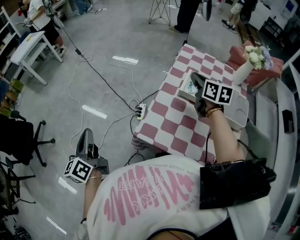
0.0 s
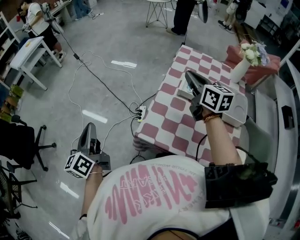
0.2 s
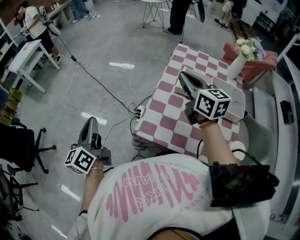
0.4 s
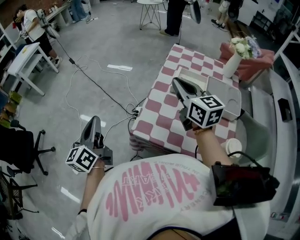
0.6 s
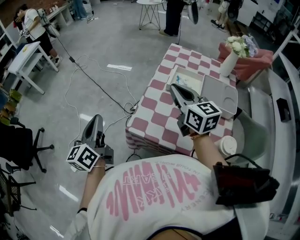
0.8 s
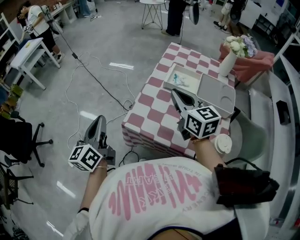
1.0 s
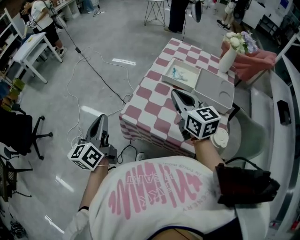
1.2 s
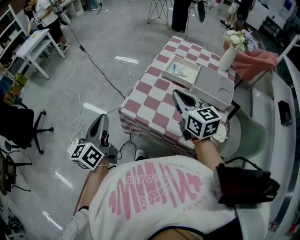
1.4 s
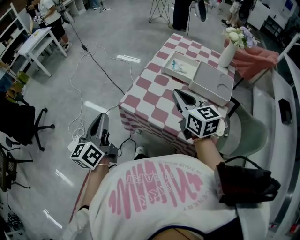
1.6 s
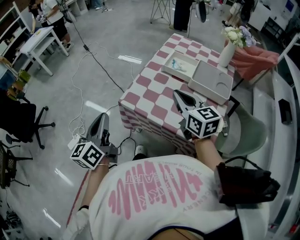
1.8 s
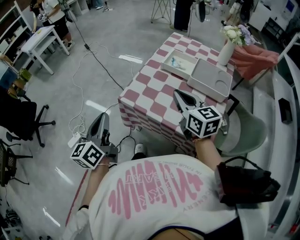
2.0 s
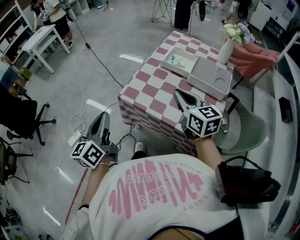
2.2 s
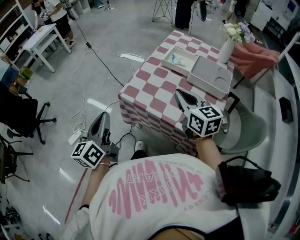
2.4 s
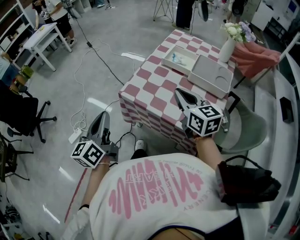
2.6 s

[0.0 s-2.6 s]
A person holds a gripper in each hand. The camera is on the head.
0.0 to 1.2 s: The right gripper shifts some 20 cm backward, while the left gripper moves to the right and backward, some 15 cm.
1.2 to 2.6 s: The grippers both shift backward by roughly 15 cm.

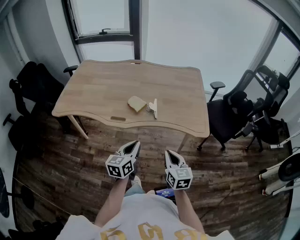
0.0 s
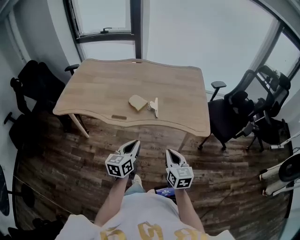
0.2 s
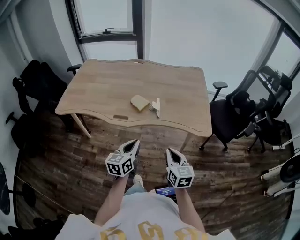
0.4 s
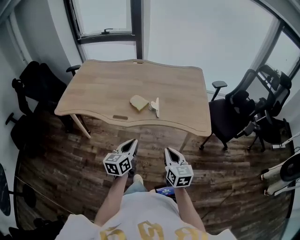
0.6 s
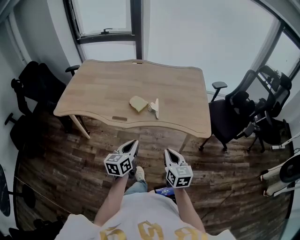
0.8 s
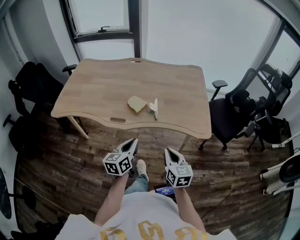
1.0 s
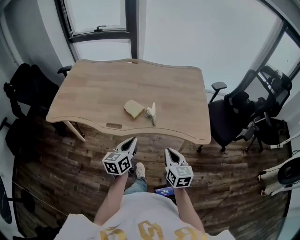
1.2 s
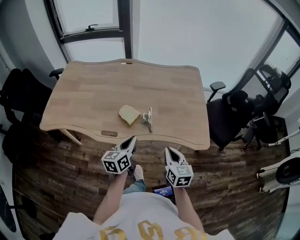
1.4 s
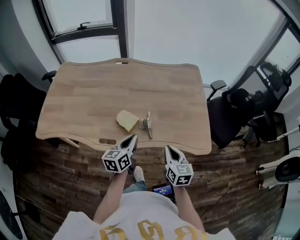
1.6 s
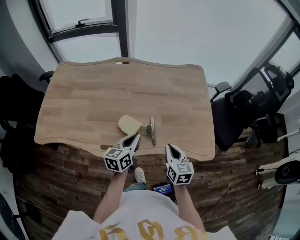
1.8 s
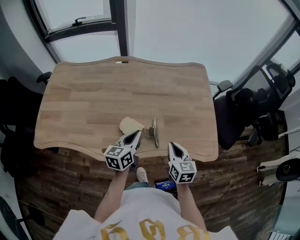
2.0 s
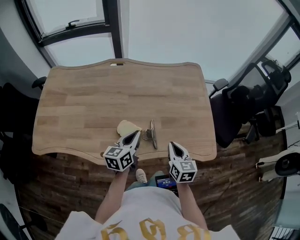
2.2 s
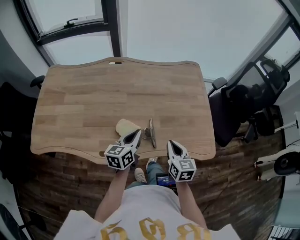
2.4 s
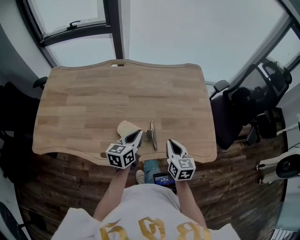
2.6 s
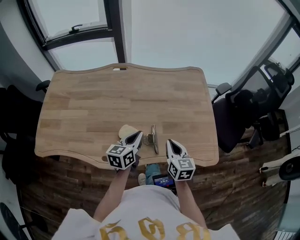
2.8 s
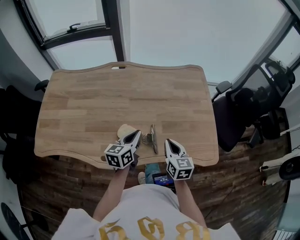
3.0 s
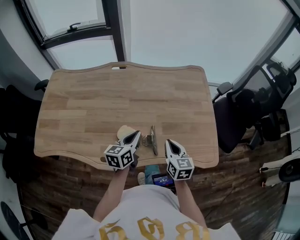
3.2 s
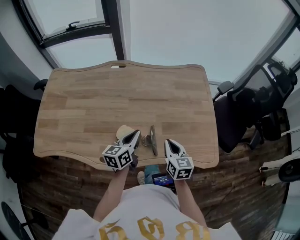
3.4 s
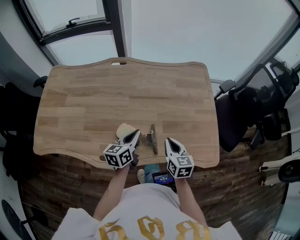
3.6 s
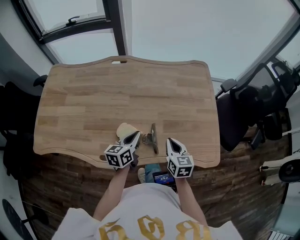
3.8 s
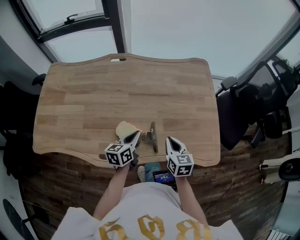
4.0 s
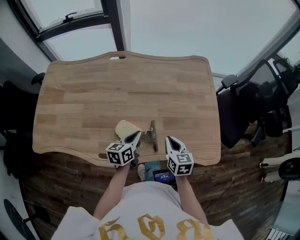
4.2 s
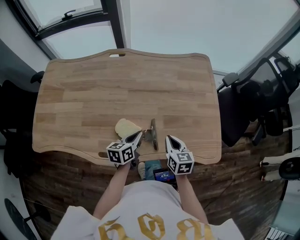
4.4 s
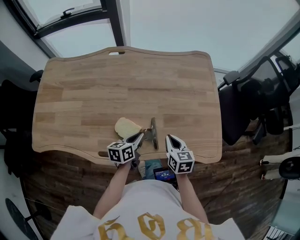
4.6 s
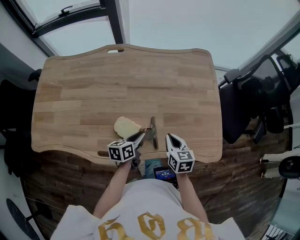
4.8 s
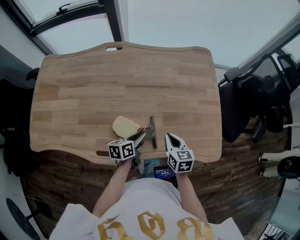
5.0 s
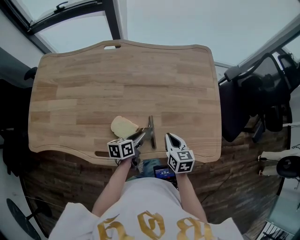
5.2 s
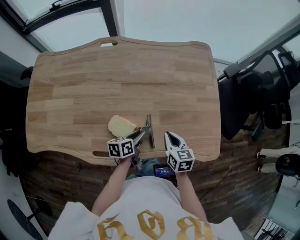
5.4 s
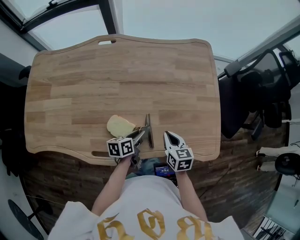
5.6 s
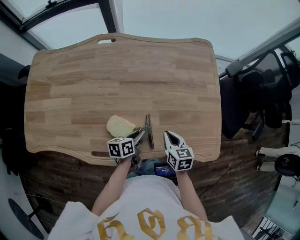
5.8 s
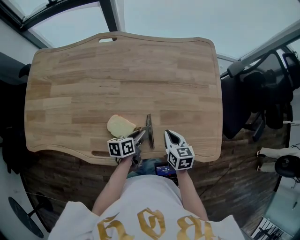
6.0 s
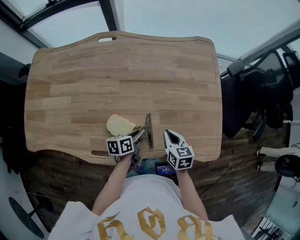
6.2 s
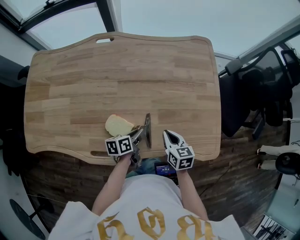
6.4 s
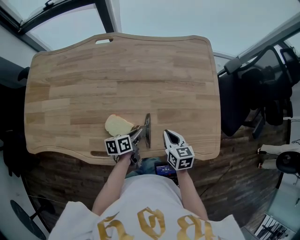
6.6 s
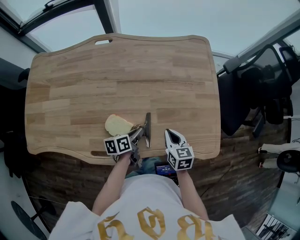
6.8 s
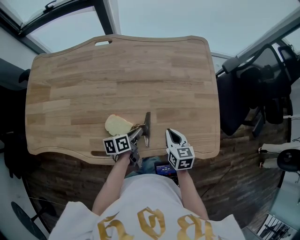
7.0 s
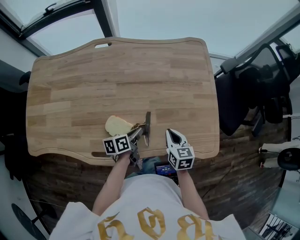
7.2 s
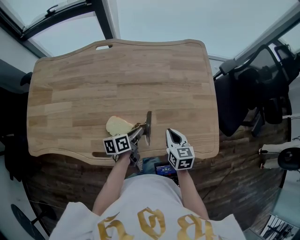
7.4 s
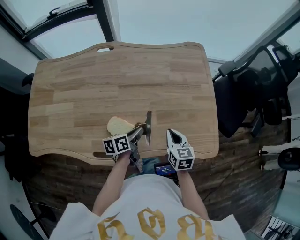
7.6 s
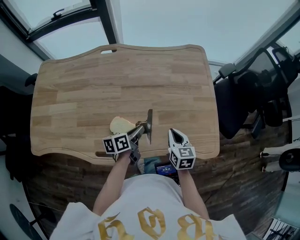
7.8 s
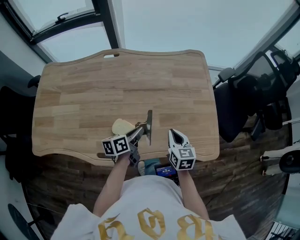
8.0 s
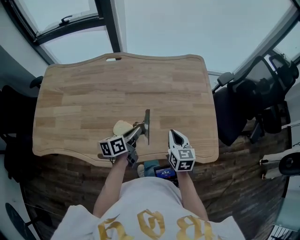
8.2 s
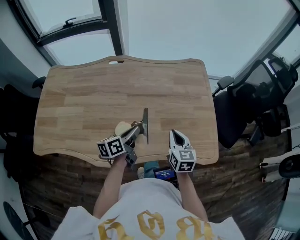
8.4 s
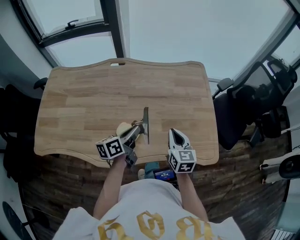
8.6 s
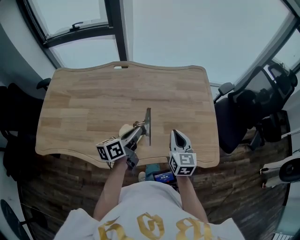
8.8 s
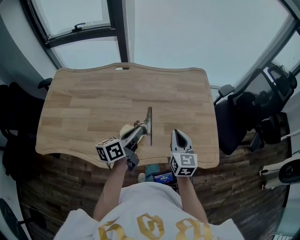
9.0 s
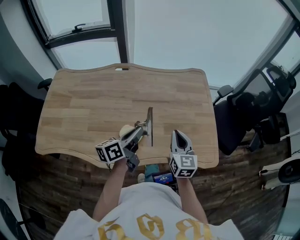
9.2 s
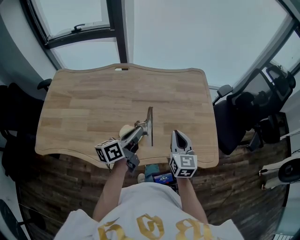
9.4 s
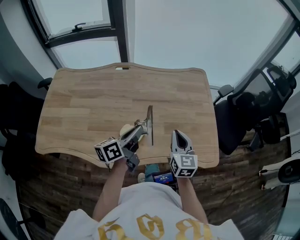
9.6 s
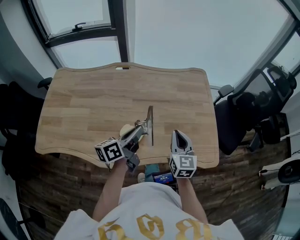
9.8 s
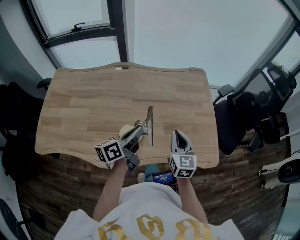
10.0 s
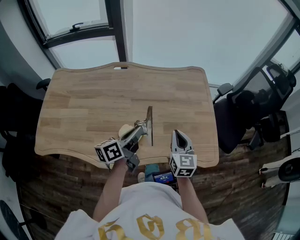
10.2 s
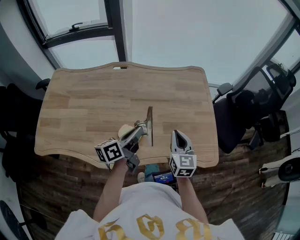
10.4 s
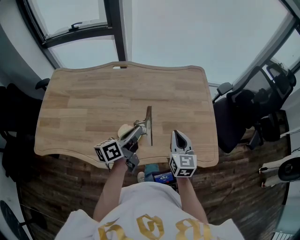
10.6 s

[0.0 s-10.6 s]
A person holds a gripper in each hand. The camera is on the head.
0.0 to 1.6 s: The two grippers go about 20 cm forward.
1.6 to 3.0 s: The grippers both shift forward by about 15 cm.
3.0 to 4.6 s: The left gripper heads downward, covering roughly 10 cm; the right gripper goes roughly 5 cm downward.
4.6 to 6.0 s: The right gripper shifts by roughly 5 cm. Meanwhile the left gripper goes roughly 5 cm downward.
6.0 to 7.6 s: The grippers stay close to where they were, moving slightly.
7.6 to 9.0 s: The two grippers go approximately 15 cm upward. The left gripper changes its angle by roughly 20 degrees; the right gripper turns by about 20 degrees.
9.0 to 10.6 s: There are only small adjustments of the grippers.

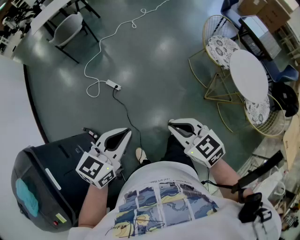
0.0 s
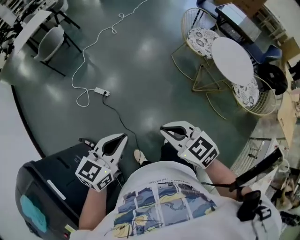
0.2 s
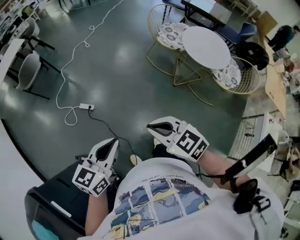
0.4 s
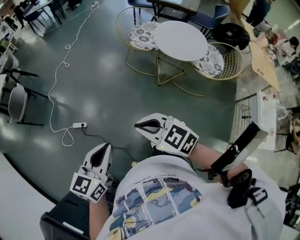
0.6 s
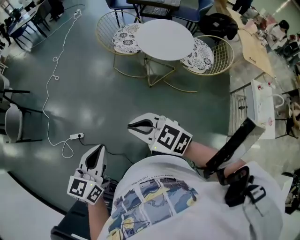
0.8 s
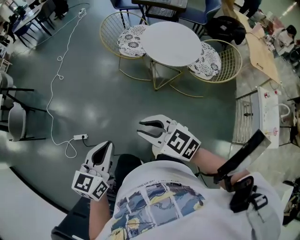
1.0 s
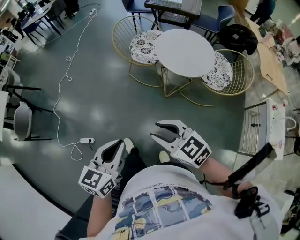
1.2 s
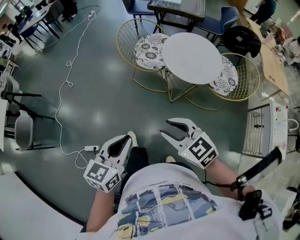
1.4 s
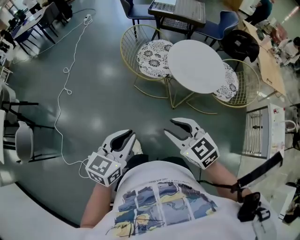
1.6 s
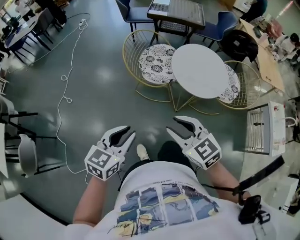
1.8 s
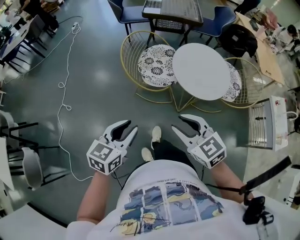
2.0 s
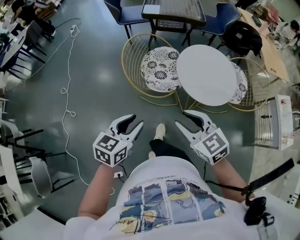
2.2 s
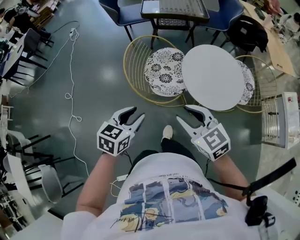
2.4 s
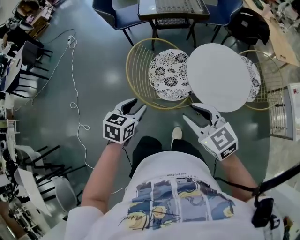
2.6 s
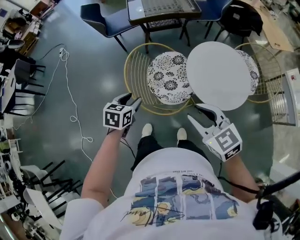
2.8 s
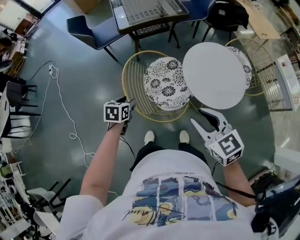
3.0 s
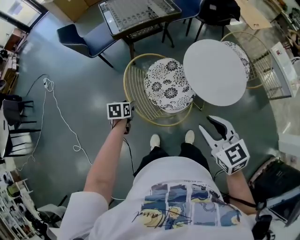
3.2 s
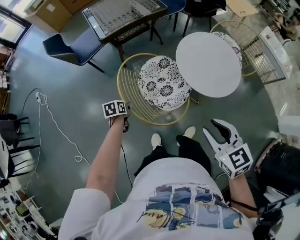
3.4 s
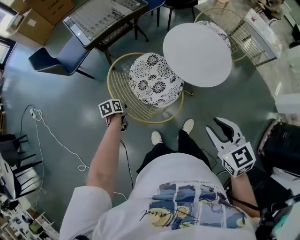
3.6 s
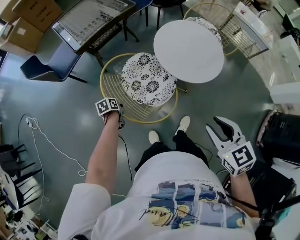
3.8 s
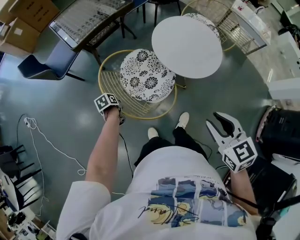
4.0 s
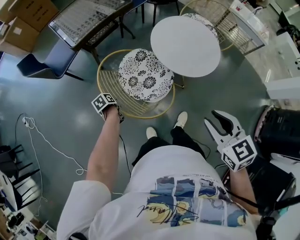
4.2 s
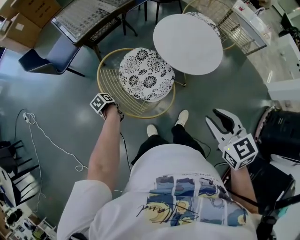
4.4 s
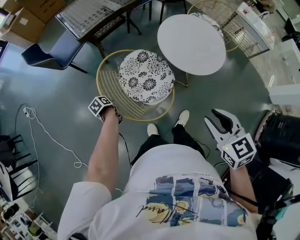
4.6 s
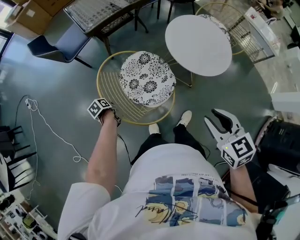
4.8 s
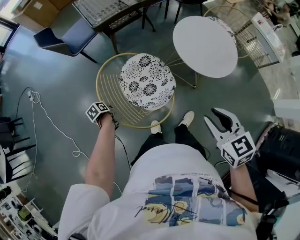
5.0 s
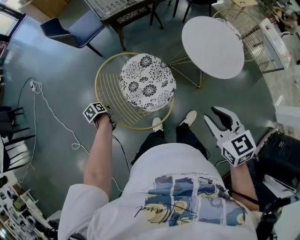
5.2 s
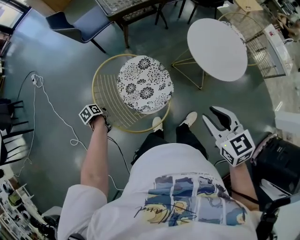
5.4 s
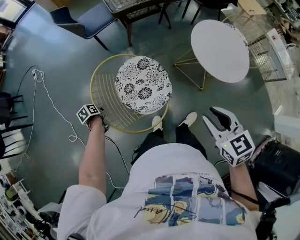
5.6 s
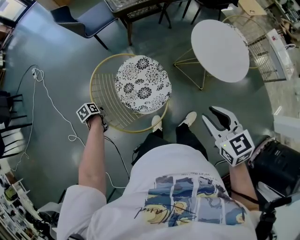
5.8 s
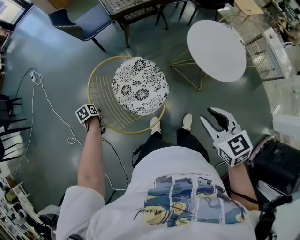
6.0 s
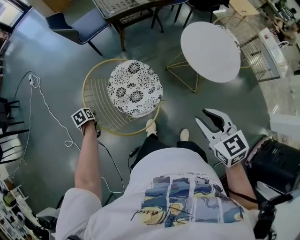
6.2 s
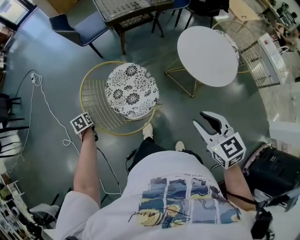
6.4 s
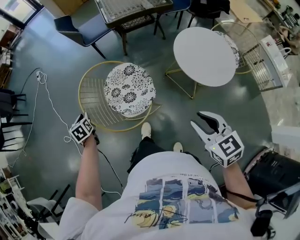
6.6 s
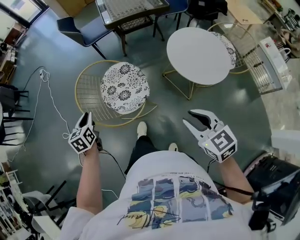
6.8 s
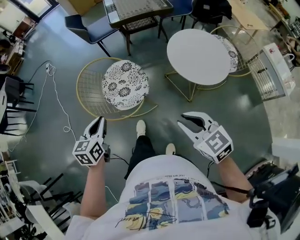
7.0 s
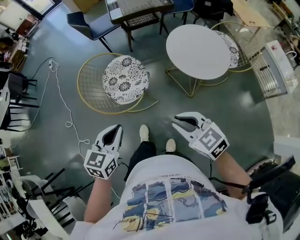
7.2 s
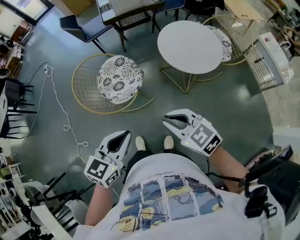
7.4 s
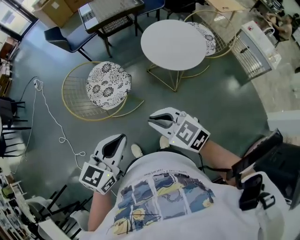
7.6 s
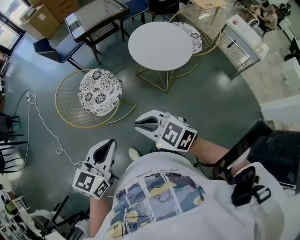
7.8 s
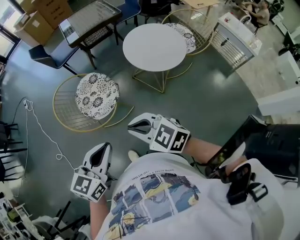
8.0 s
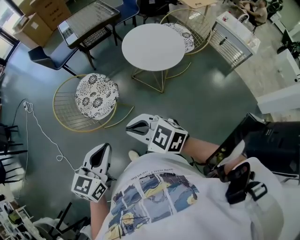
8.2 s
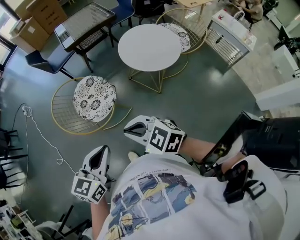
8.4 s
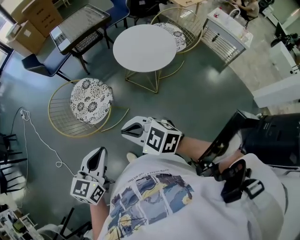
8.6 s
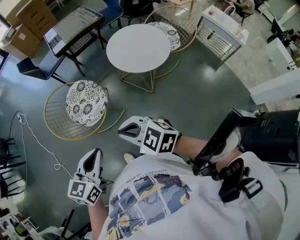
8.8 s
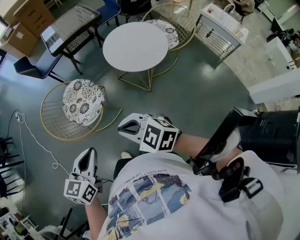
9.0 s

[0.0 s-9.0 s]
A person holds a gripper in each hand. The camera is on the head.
0.0 to 1.6 s: The left gripper ends up approximately 40 cm from where it was, and rotates about 40 degrees. Meanwhile the right gripper ends up approximately 35 cm from where it was, swivels about 40 degrees, and opens up.
1.6 to 3.0 s: The pair of grippers is taken roughly 50 cm. The left gripper tips its fingers downward by roughly 30 degrees, and opens its fingers. The right gripper turns by about 40 degrees.
3.0 to 4.4 s: The right gripper ends up roughly 10 cm from where it was, and swivels roughly 30 degrees. Meanwhile the left gripper shifts approximately 20 cm downward, turns by approximately 40 degrees, and closes its fingers.
4.4 to 6.0 s: The left gripper goes roughly 30 cm to the left and backward, while the right gripper moves to the left, some 10 cm.
6.0 to 7.6 s: The left gripper changes place by approximately 70 cm, and angles its fingers upward, by roughly 50 degrees. The right gripper changes place by approximately 20 cm, turns by roughly 30 degrees, and closes its fingers.

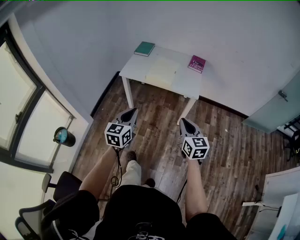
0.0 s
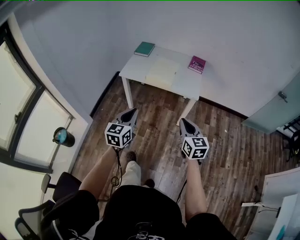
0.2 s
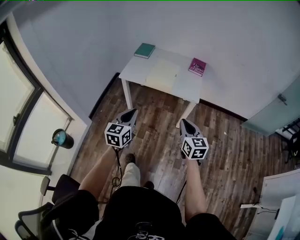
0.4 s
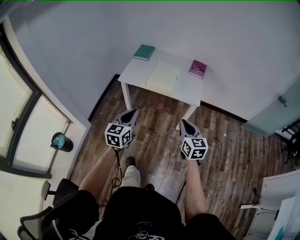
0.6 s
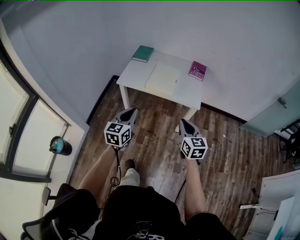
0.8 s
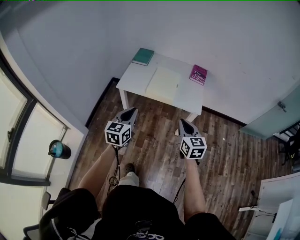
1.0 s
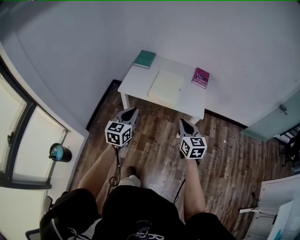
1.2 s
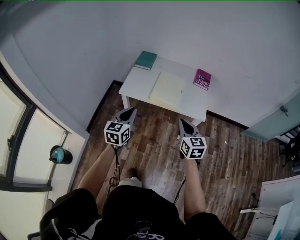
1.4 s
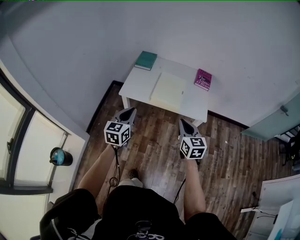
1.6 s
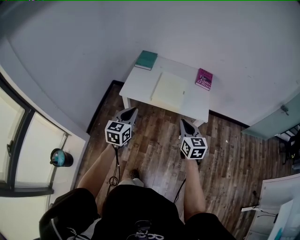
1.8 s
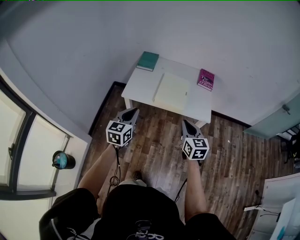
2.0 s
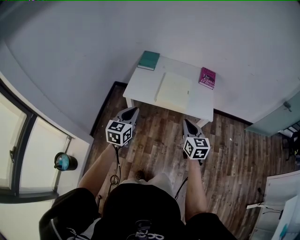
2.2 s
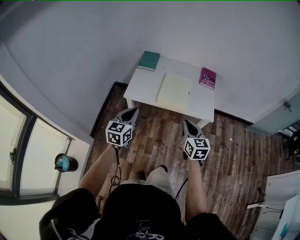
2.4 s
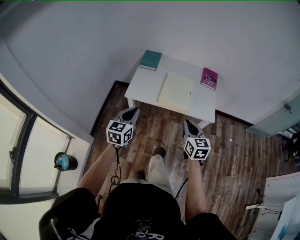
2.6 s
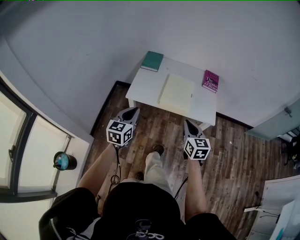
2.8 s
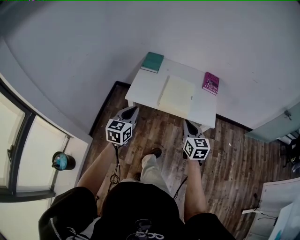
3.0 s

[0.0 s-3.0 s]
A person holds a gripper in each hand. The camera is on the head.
0.0 to 1.6 s: The two grippers go approximately 25 cm forward and to the left.
1.6 to 3.0 s: The right gripper is displaced forward and to the left by about 10 cm; the left gripper travels to the left and forward by about 10 cm.
